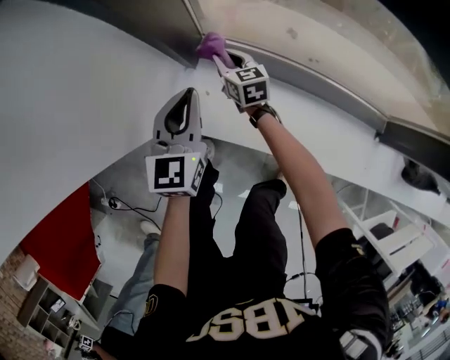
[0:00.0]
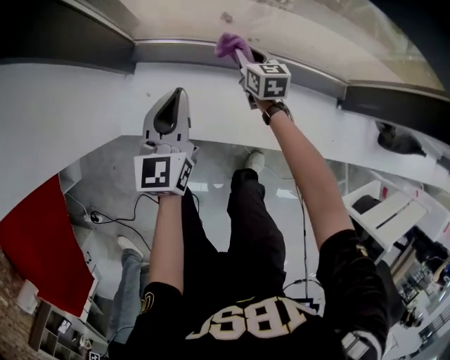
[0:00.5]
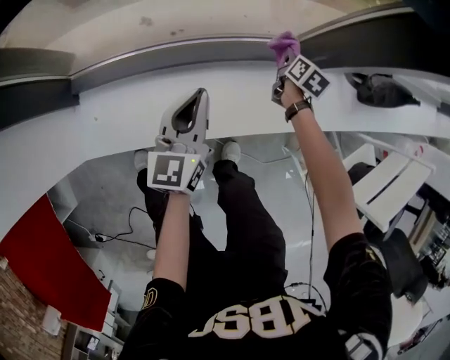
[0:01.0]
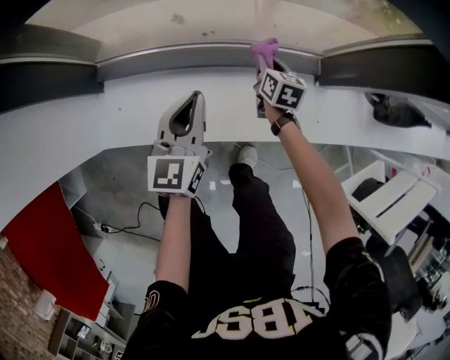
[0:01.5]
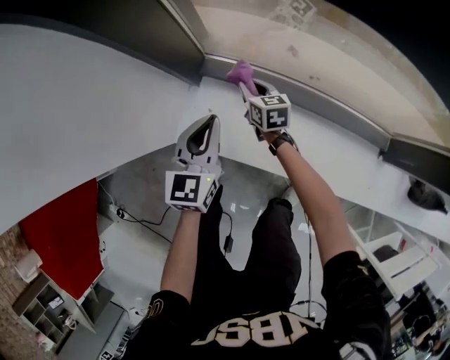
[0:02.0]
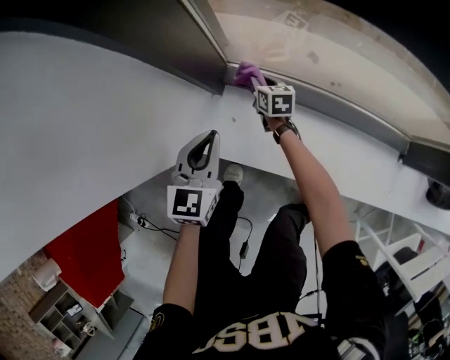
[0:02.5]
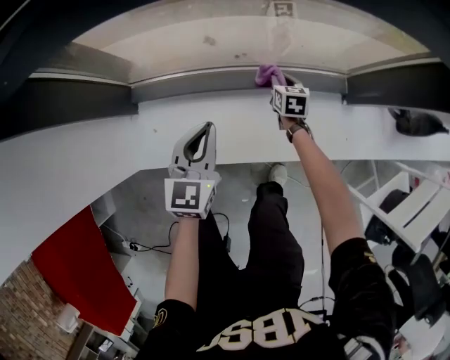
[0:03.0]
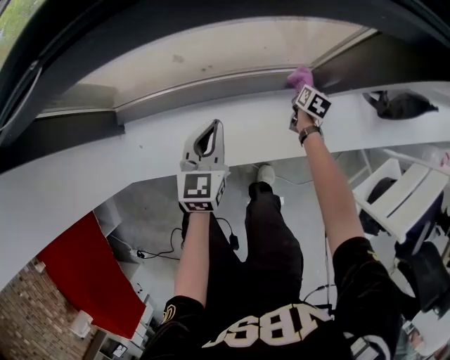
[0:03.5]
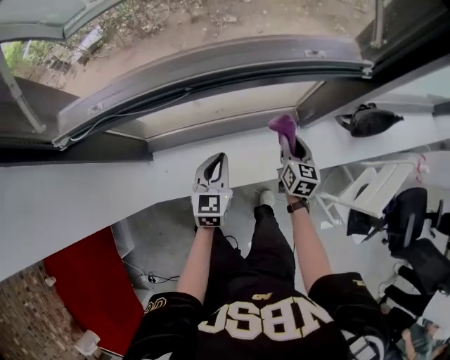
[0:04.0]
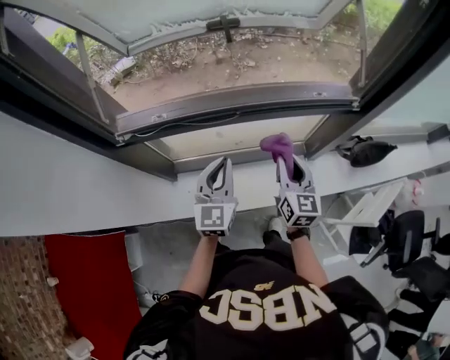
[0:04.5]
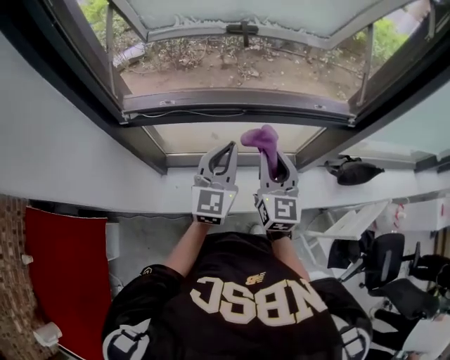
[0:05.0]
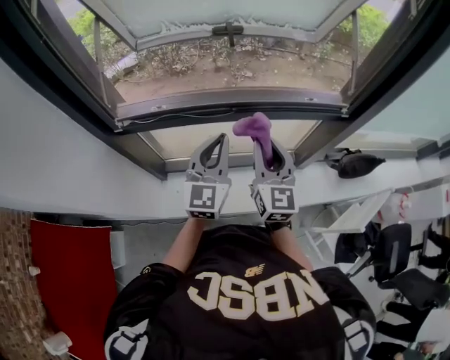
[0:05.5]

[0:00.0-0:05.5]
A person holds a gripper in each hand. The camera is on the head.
0:02.0 to 0:03.5: The right gripper ends up roughly 60 cm from where it was, and rotates some 60 degrees. The left gripper moves roughly 35 cm, and swivels roughly 20 degrees.
0:03.5 to 0:05.5: The right gripper travels upward and to the left by about 70 cm, and points its fingers about 50 degrees further upward. The left gripper goes about 40 cm upward, and changes its angle by roughly 30 degrees.

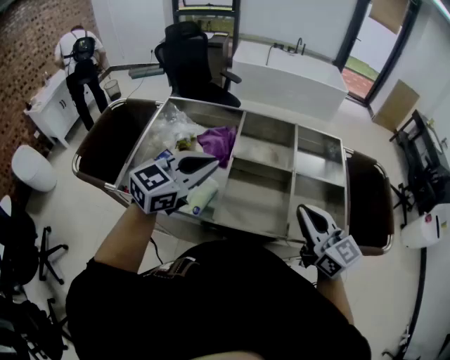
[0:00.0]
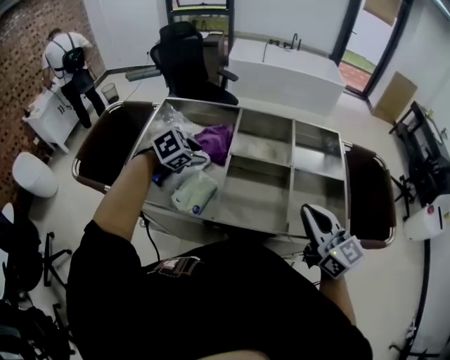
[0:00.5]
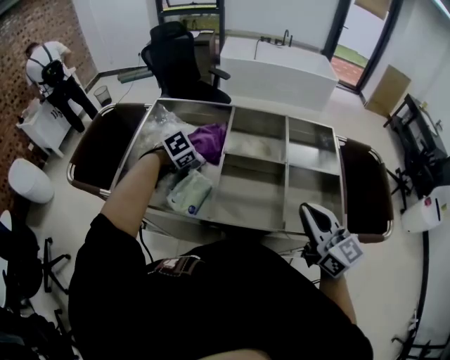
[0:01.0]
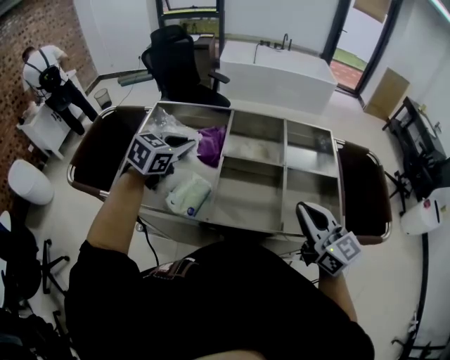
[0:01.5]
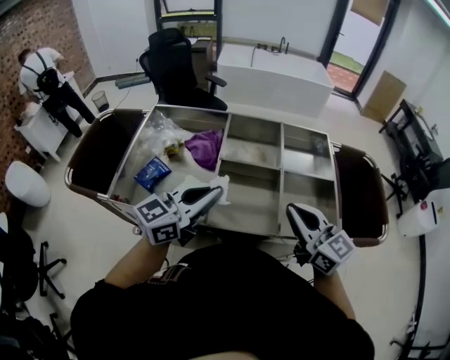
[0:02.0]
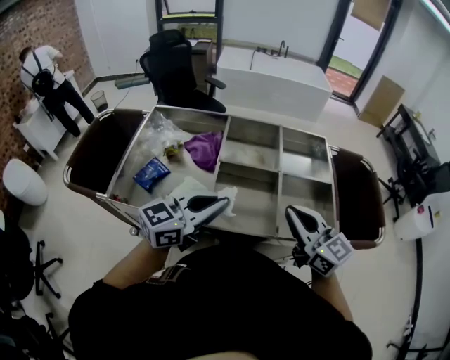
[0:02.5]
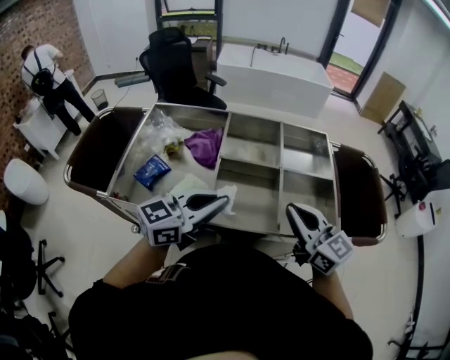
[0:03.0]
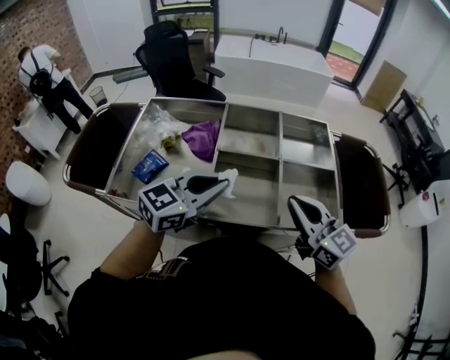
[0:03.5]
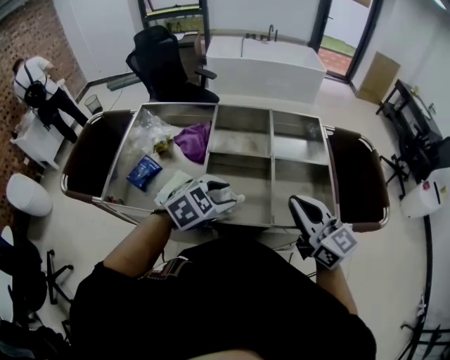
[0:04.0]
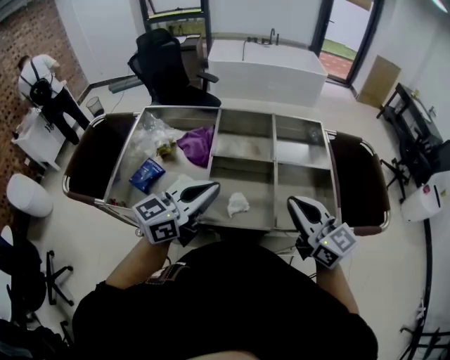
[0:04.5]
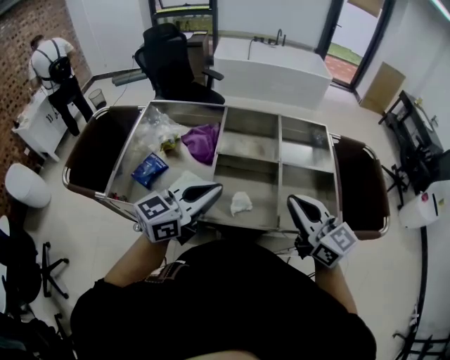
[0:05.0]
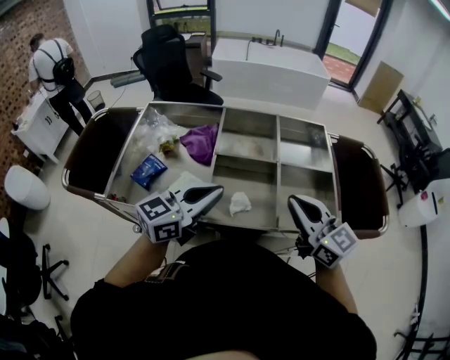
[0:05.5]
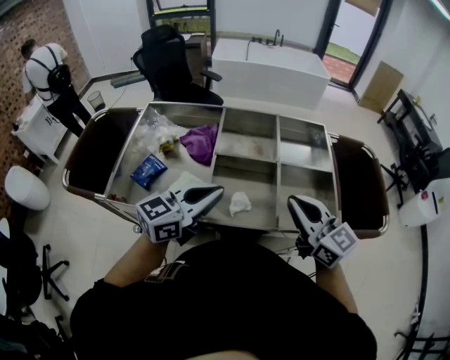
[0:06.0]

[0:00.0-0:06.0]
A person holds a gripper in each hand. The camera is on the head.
0:00.0 to 0:02.0: The left gripper travels downward and back again, roughly 20 cm each way, and opens, then closes once more.
0:02.0 to 0:04.0: The left gripper moves downward and to the right, about 10 cm, tips its fingers downward by about 50 degrees, and opens.
0:04.0 to 0:06.0: The left gripper heads upward, covering about 10 cm, tilts its fingers about 40 degrees upward, and closes its fingers.

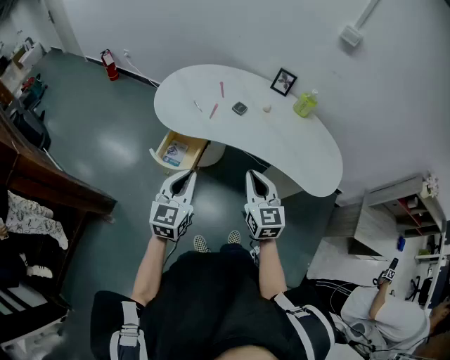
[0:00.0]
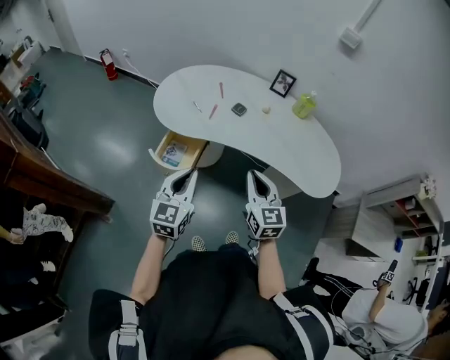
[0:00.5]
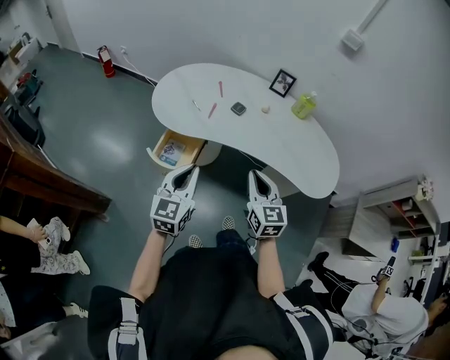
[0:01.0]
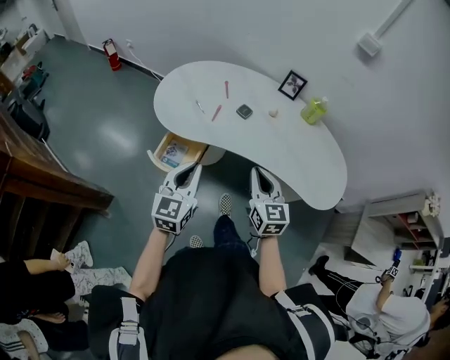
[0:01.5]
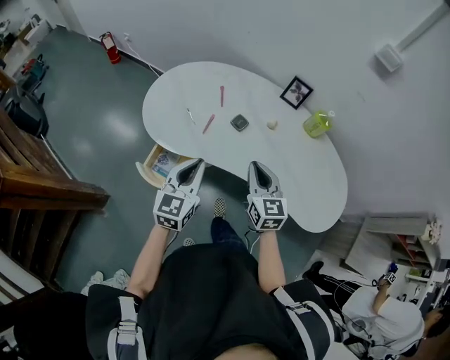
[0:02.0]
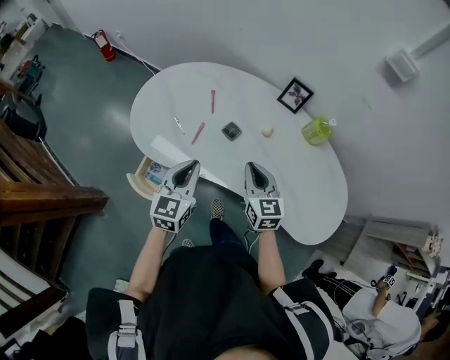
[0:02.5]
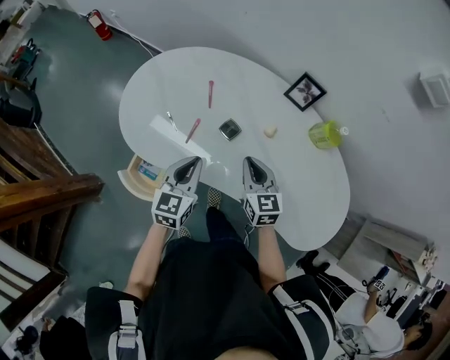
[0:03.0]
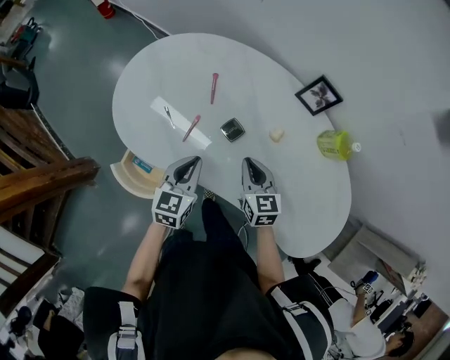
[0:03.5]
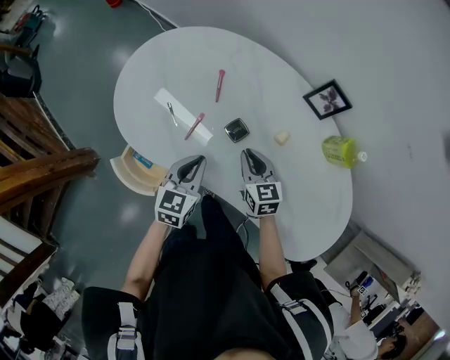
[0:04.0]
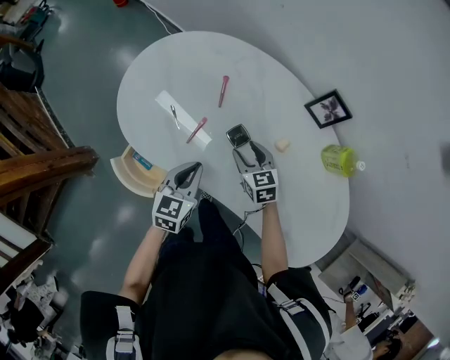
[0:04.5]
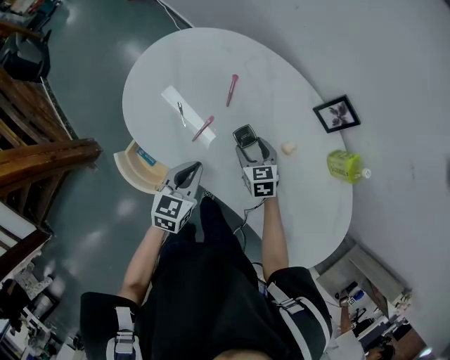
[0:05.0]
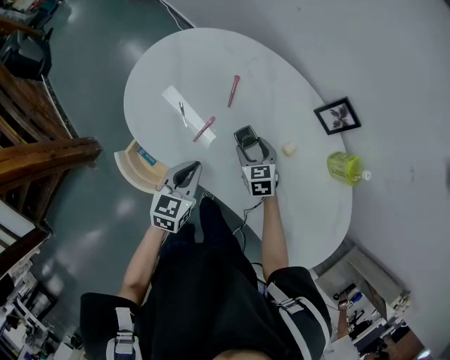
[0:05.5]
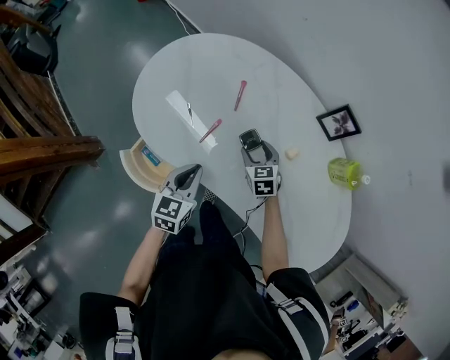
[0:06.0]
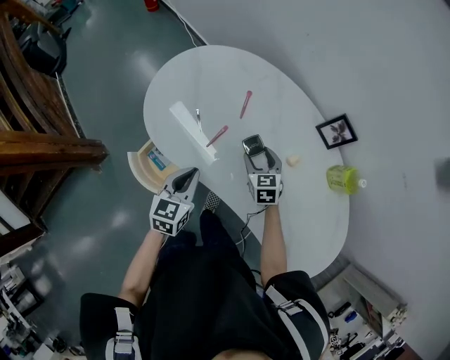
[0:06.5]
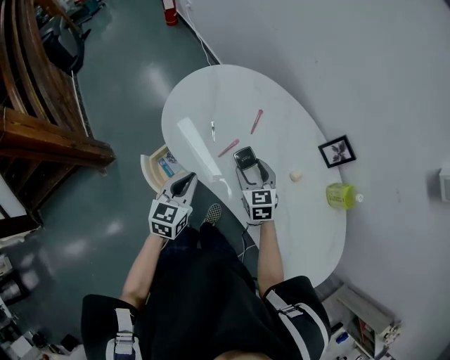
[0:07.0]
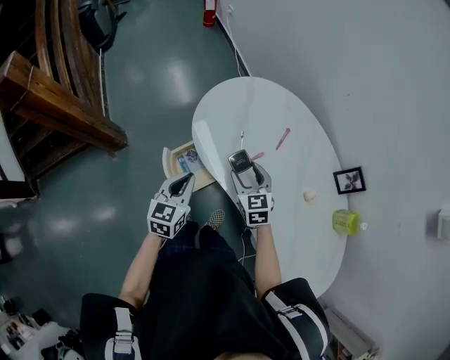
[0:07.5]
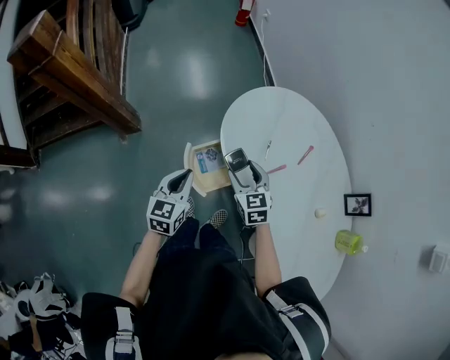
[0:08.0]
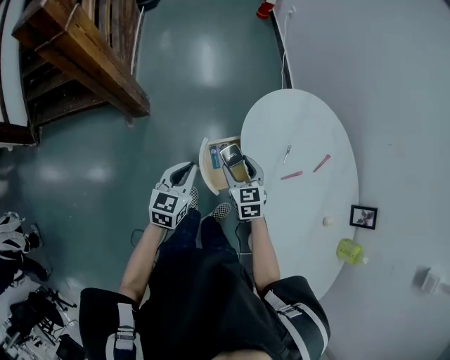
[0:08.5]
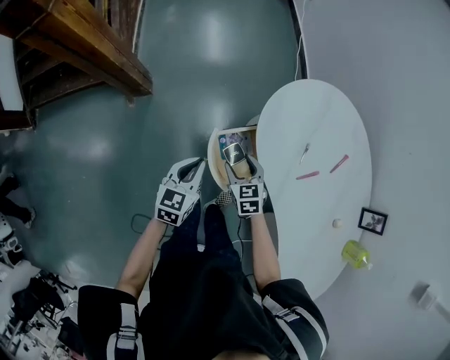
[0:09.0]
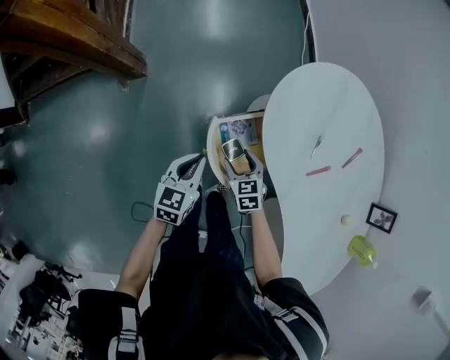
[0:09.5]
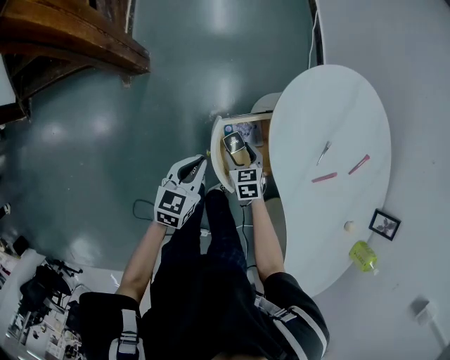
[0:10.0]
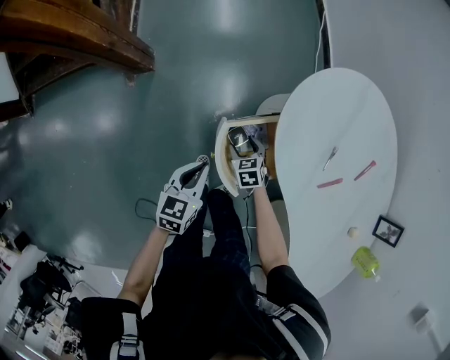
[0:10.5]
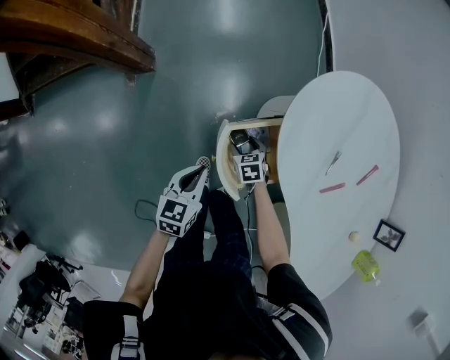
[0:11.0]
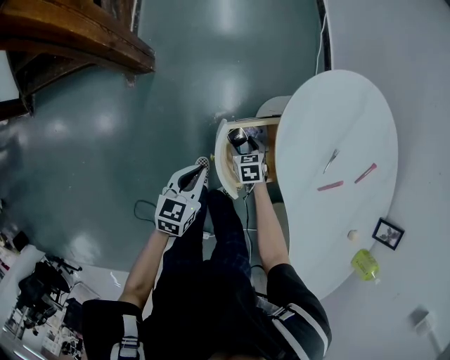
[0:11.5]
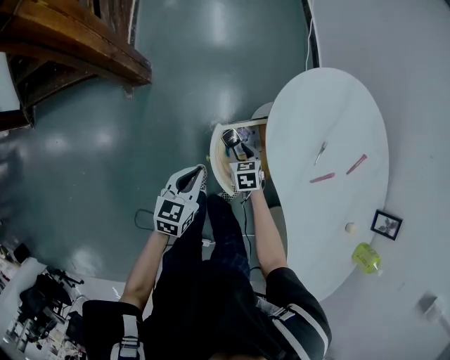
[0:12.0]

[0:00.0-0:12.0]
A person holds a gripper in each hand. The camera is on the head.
0:00.0 to 0:02.0: Both grippers travel together forward, about 25 cm.
0:02.0 to 0:04.0: The grippers both shift forward and downward by some 30 cm. The left gripper swivels about 20 degrees, while the right gripper turns by roughly 20 degrees.
0:04.0 to 0:06.0: The right gripper travels downward by roughly 5 cm, and opens up, while the left gripper moves about 5 cm.
0:06.0 to 0:08.0: The left gripper shifts by some 30 cm, and turns by approximately 30 degrees; the right gripper changes place by some 35 cm, and swivels approximately 30 degrees.
0:08.0 to 0:10.0: The left gripper goes about 20 cm downward and to the left; the right gripper goes approximately 30 cm downward and to the left, and rotates some 20 degrees.
0:10.0 to 0:12.0: The right gripper travels downward and back again, some 10 cm each way, and closes up.

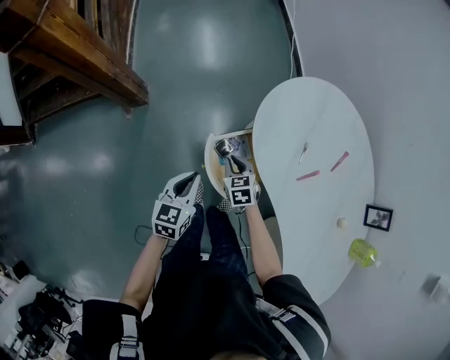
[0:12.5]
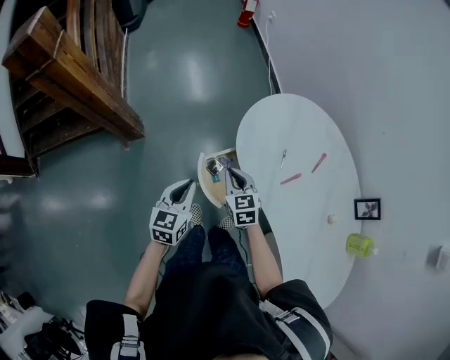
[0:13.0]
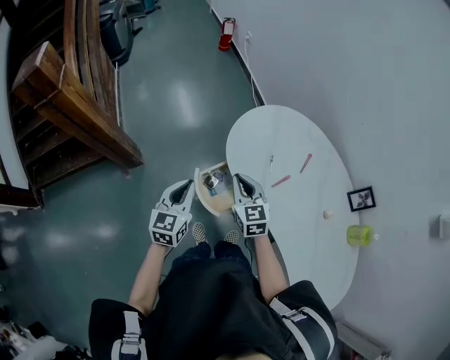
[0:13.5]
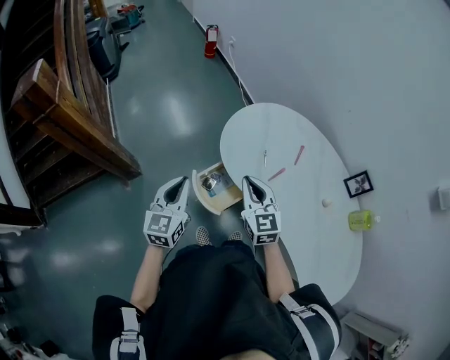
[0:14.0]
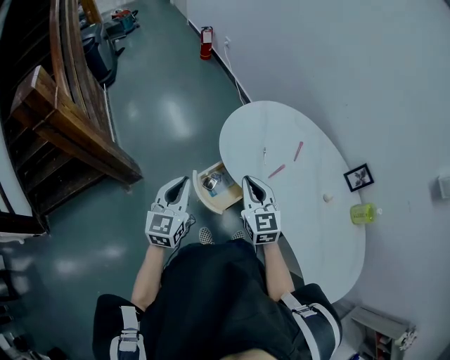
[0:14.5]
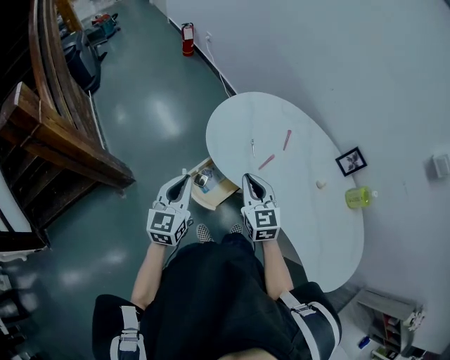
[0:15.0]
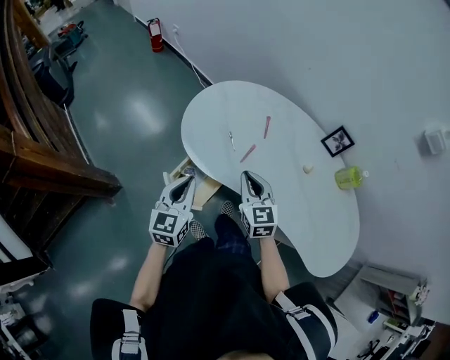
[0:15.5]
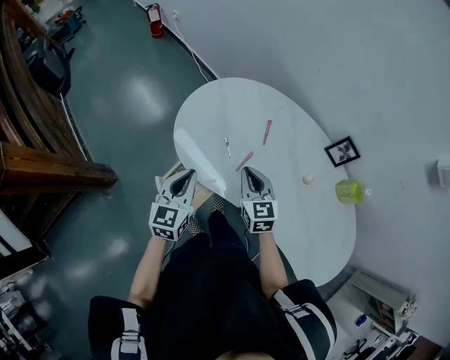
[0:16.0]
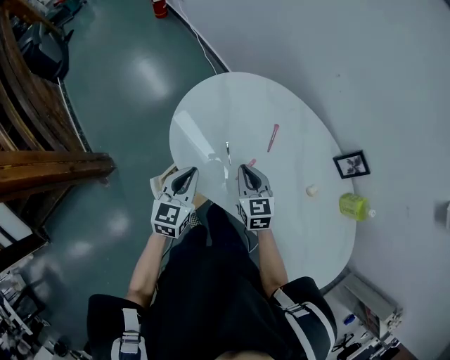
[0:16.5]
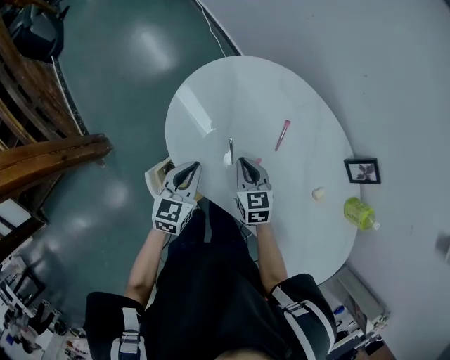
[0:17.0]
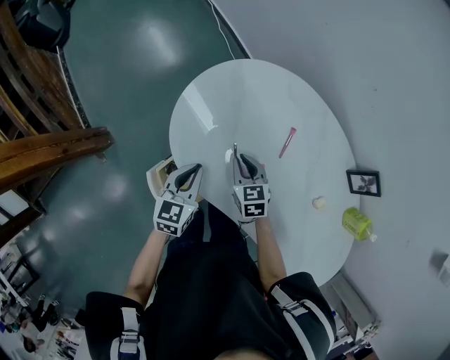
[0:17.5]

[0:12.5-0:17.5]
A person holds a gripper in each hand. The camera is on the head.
0:12.5 to 0:15.0: The left gripper goes about 20 cm upward, and turns by about 30 degrees. The right gripper shifts approximately 35 cm upward and to the right, and points its fingers some 30 degrees further upward.
0:15.0 to 0:17.5: The left gripper heads forward, downward and to the right, covering about 35 cm, and rotates some 20 degrees, while the right gripper goes roughly 35 cm downward and forward, and swivels approximately 30 degrees.
